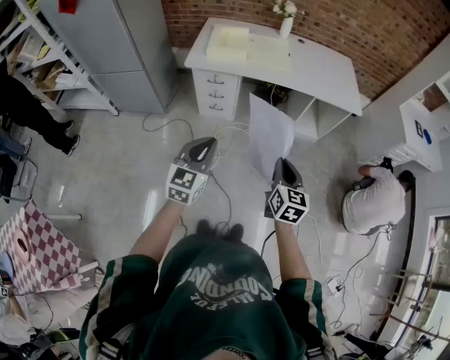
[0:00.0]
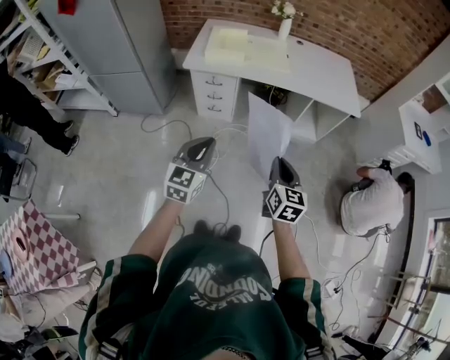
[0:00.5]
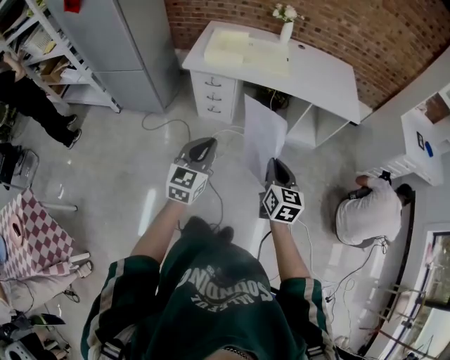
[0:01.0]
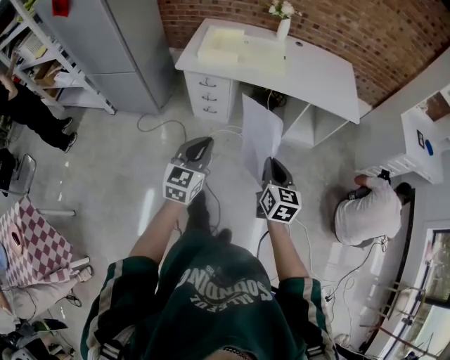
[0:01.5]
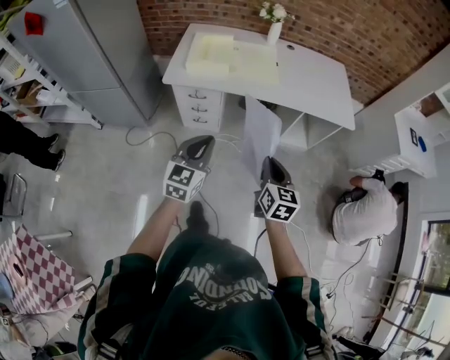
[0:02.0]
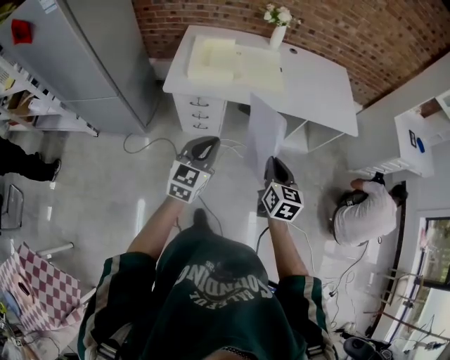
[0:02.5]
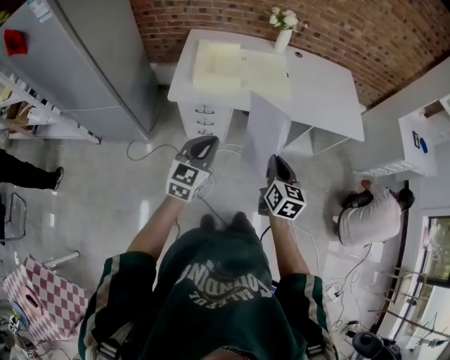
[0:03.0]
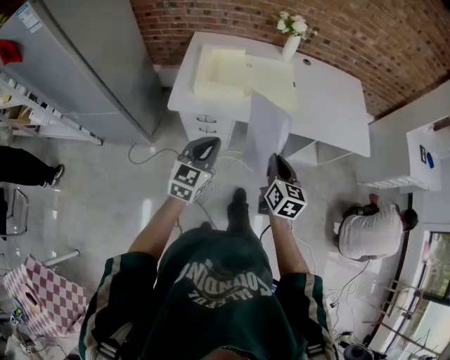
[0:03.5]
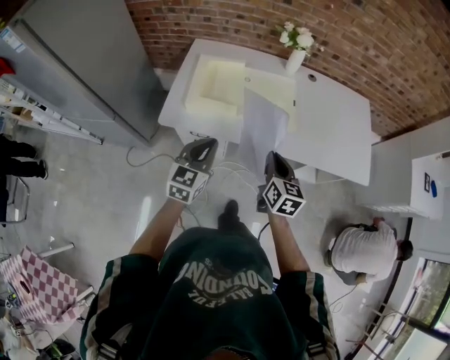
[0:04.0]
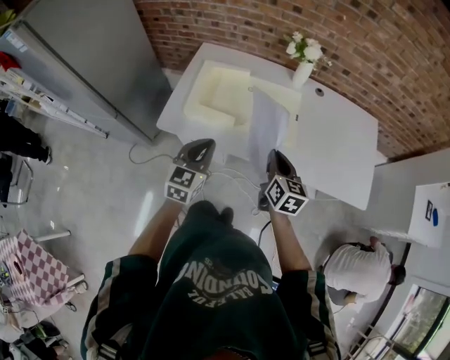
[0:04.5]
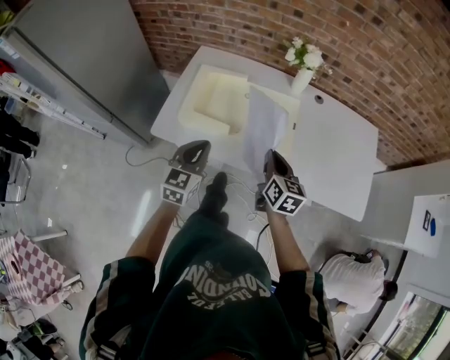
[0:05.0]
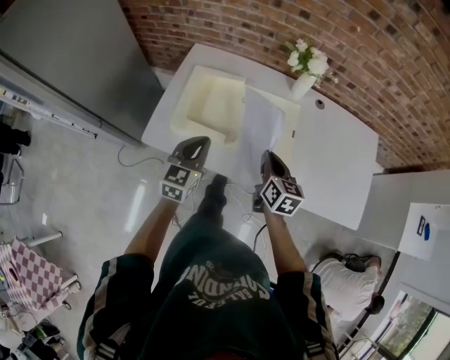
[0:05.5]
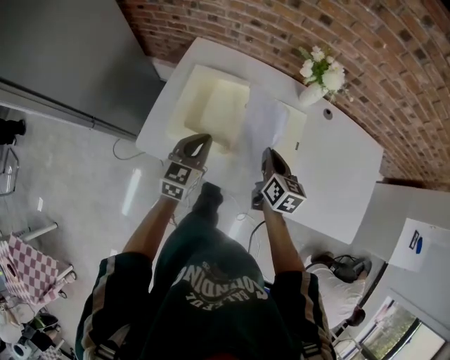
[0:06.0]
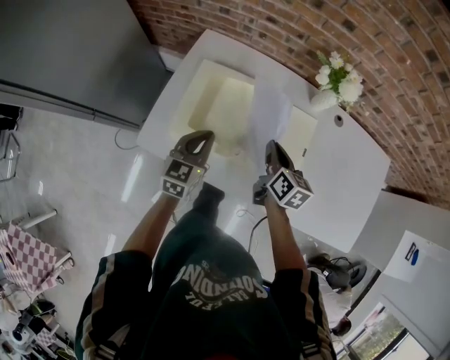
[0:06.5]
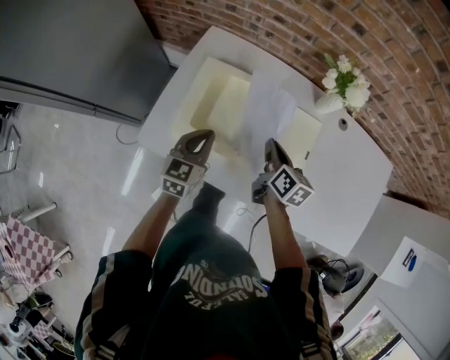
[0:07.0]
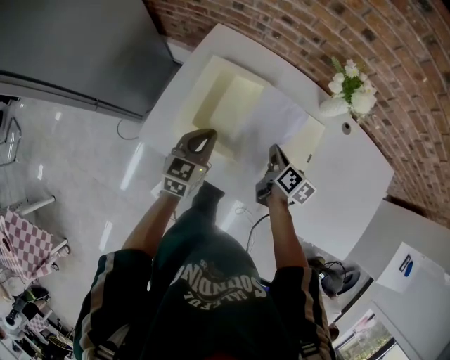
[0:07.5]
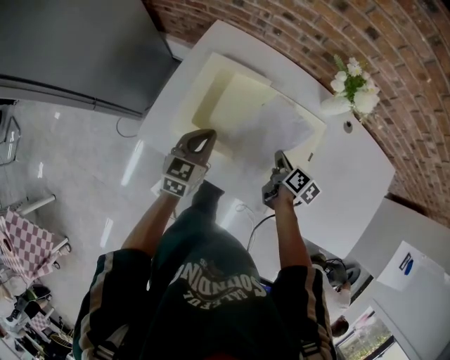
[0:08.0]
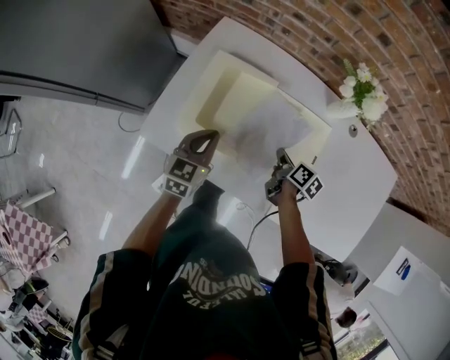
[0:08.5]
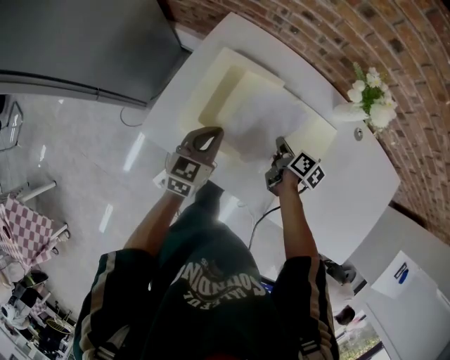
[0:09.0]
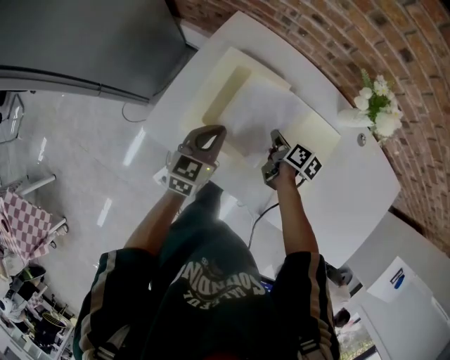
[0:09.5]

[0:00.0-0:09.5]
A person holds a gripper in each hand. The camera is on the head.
0:00.0 to 0:02.0: The grippers both shift forward by some 15 cm.
0:02.0 to 0:04.0: The grippers both shift forward by about 30 cm.
0:04.0 to 0:05.5: The two grippers go some 20 cm forward.
0:05.5 to 0:07.5: Both grippers travel together forward and downward, approximately 15 cm. The right gripper swivels some 30 degrees.
0:07.5 to 0:09.5: The right gripper shifts some 10 cm downward and forward.

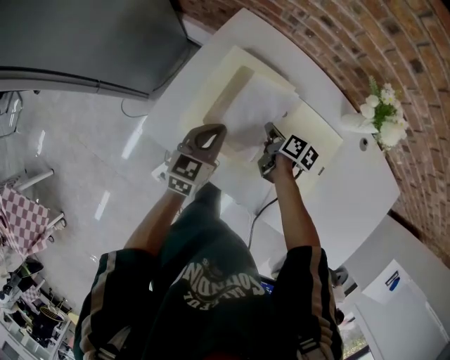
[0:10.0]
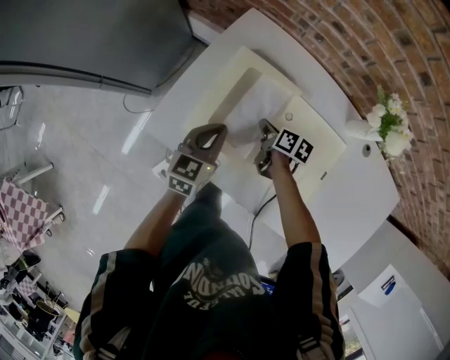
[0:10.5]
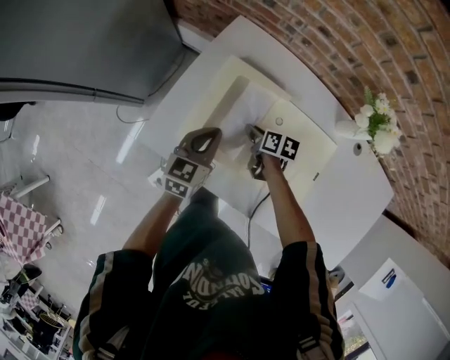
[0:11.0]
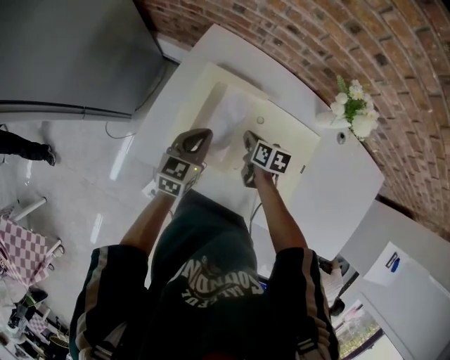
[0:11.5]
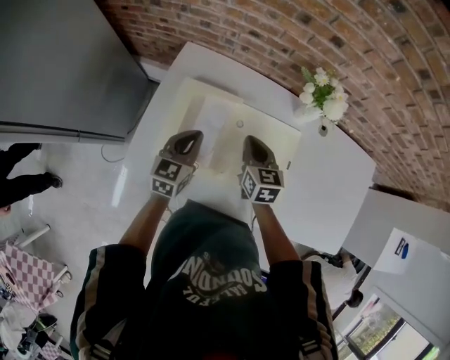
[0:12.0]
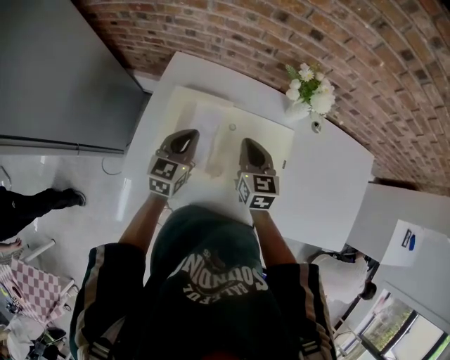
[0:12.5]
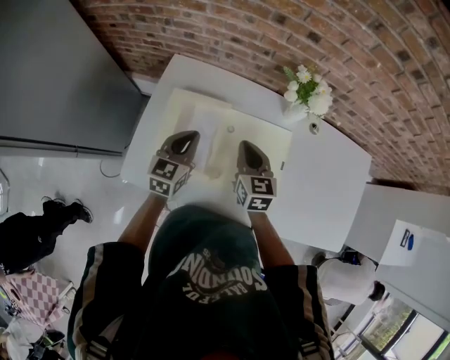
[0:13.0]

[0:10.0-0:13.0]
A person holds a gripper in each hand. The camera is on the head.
0:10.0 to 0:11.5: The right gripper opens, then closes again.
0:11.5 to 0:13.0: The left gripper goes some 5 cm upward; the right gripper goes roughly 15 cm upward, and rotates some 40 degrees.

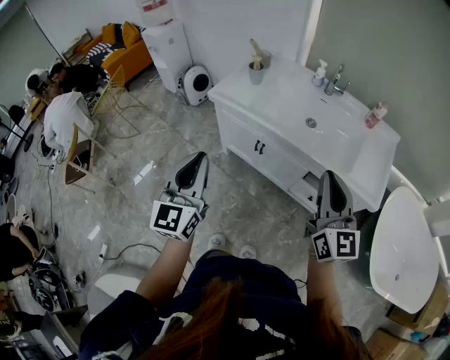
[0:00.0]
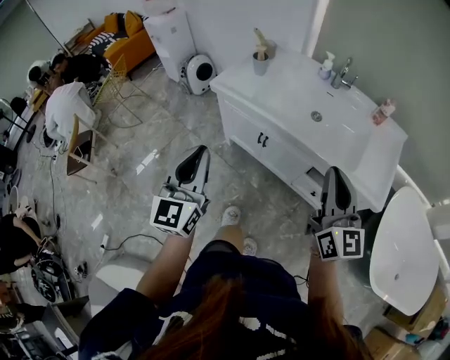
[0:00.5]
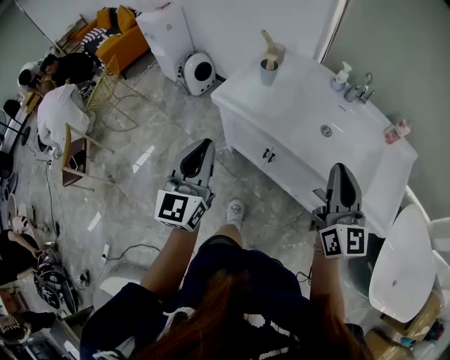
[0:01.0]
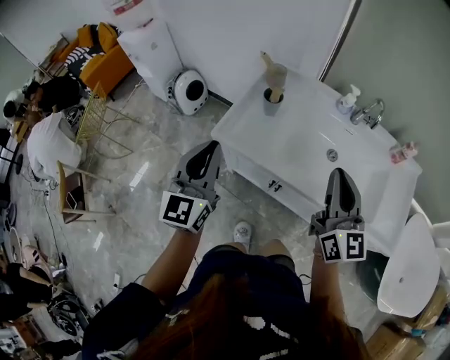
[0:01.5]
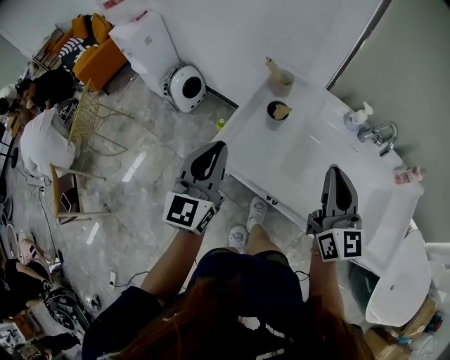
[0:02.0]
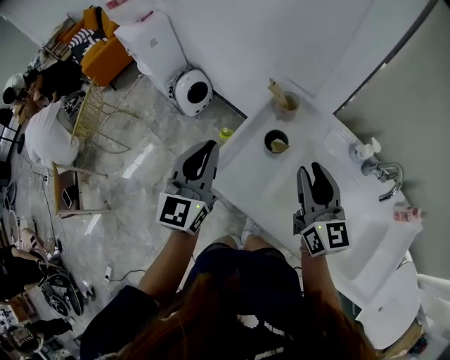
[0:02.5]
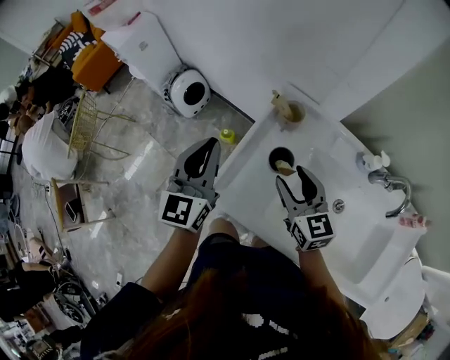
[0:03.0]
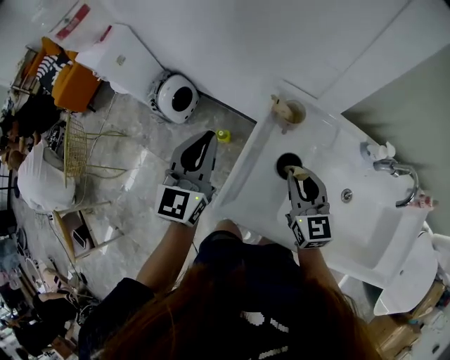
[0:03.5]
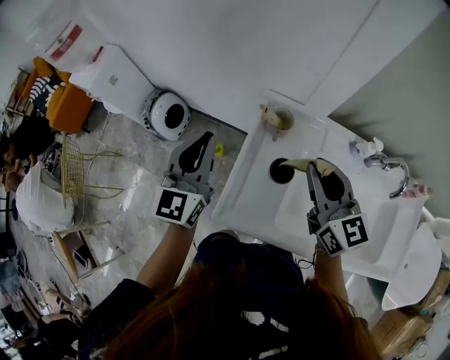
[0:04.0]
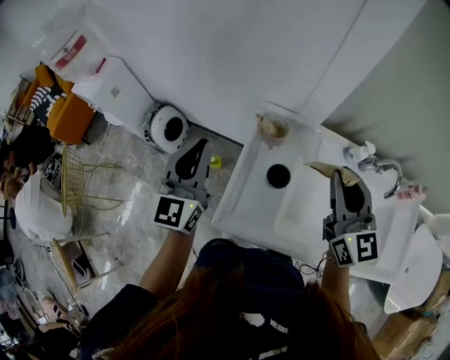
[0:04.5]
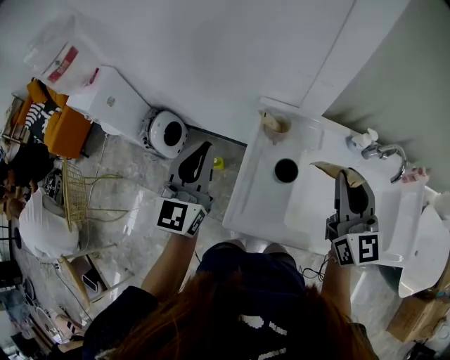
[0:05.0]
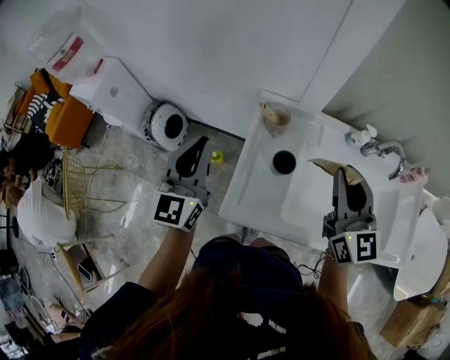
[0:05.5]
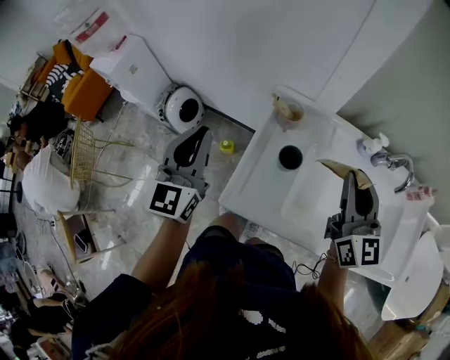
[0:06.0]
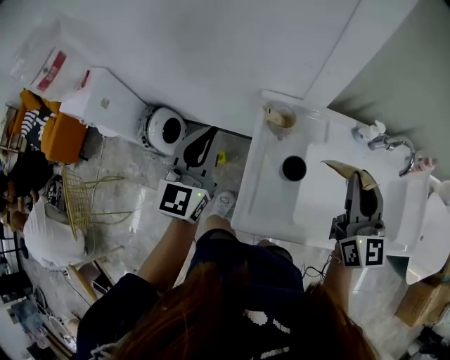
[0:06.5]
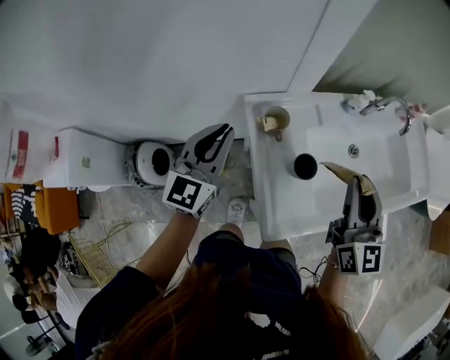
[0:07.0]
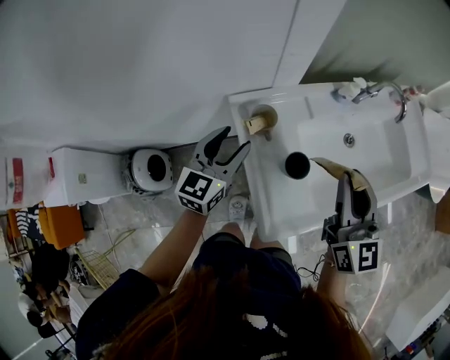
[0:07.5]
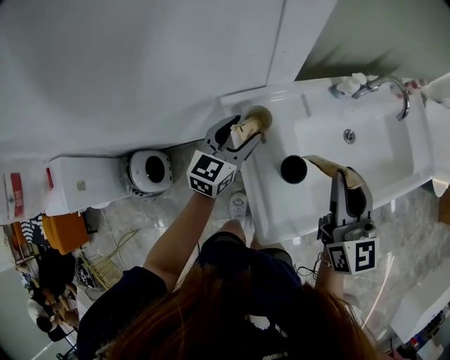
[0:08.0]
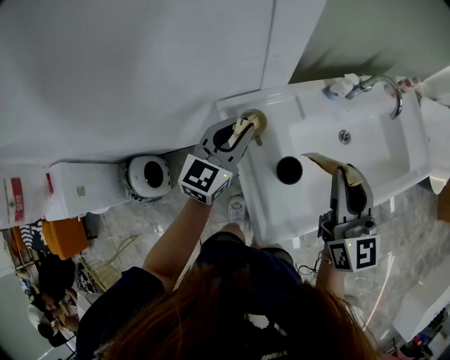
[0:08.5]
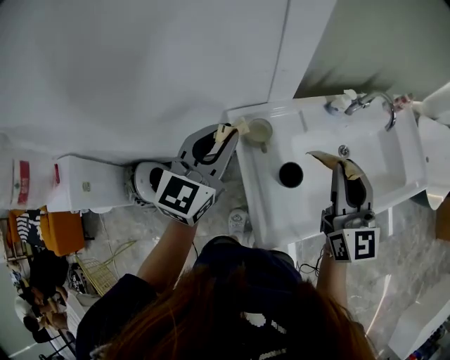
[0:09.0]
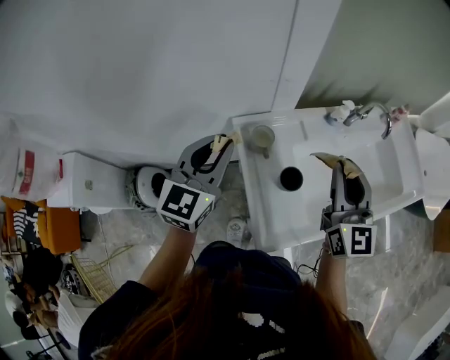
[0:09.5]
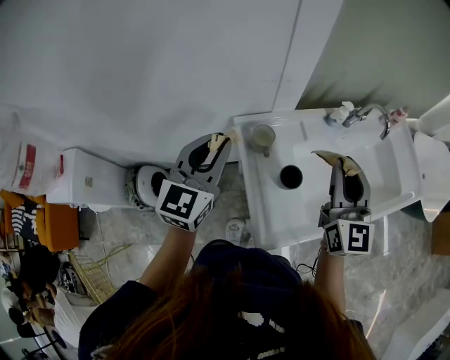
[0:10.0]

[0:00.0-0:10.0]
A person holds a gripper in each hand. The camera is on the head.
0:00.0 to 0:02.0: The two grippers travel together, forward, approximately 50 cm.
0:02.0 to 0:04.0: Both grippers travel together forward, some 30 cm. The right gripper opens, then closes again.
0:04.0 to 0:06.0: The left gripper moves backward, about 5 cm. The right gripper goes about 10 cm to the right and backward.
0:06.0 to 0:08.0: The left gripper changes place by roughly 30 cm, rotates roughly 60 degrees, and opens up. Meanwhile the right gripper changes place by roughly 10 cm, and turns by approximately 40 degrees.
0:08.0 to 0:10.0: The right gripper is displaced upward by approximately 5 cm; the left gripper heads upward and backward, covering about 20 cm, and closes.

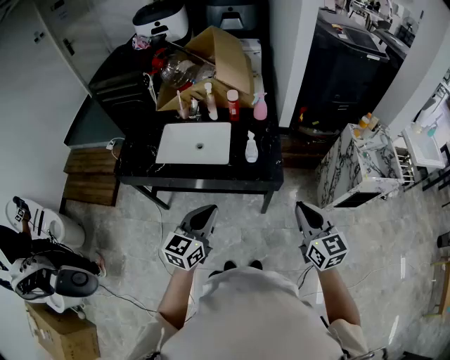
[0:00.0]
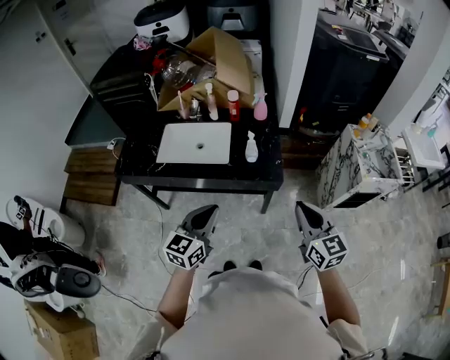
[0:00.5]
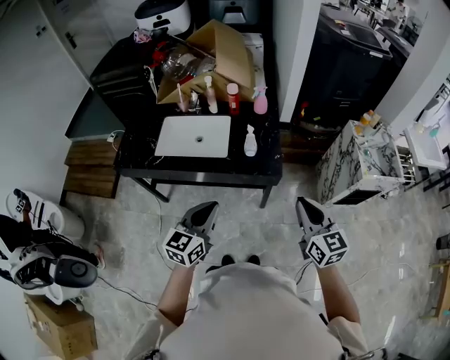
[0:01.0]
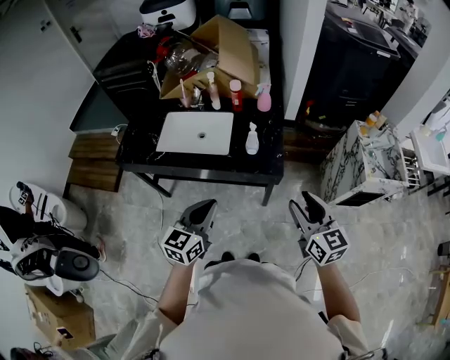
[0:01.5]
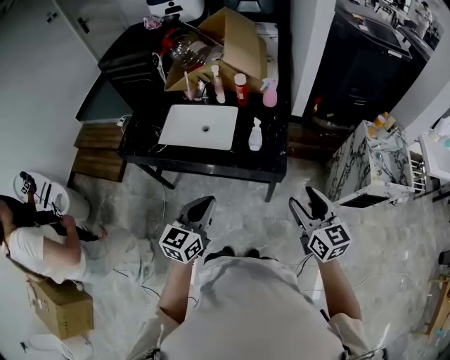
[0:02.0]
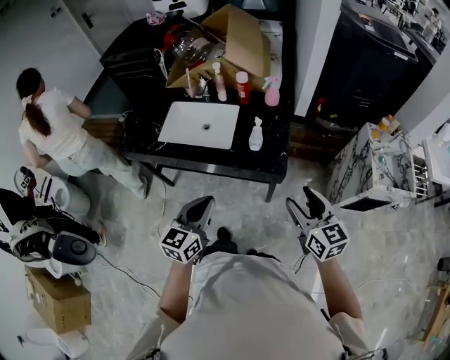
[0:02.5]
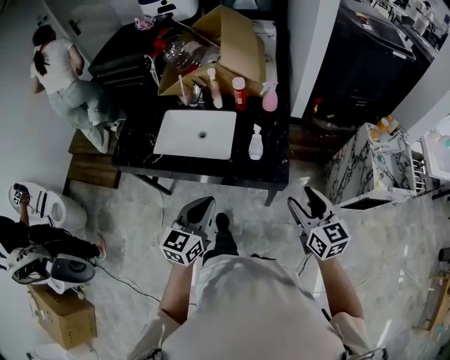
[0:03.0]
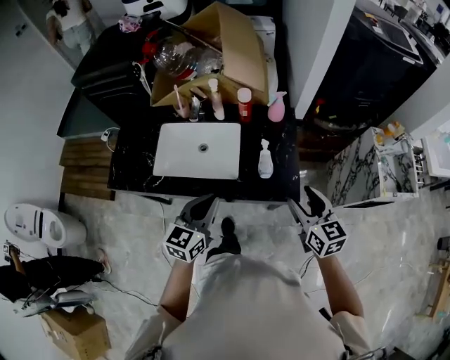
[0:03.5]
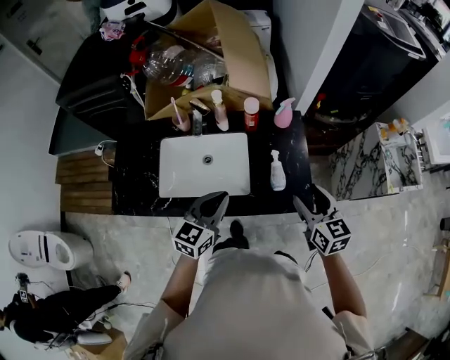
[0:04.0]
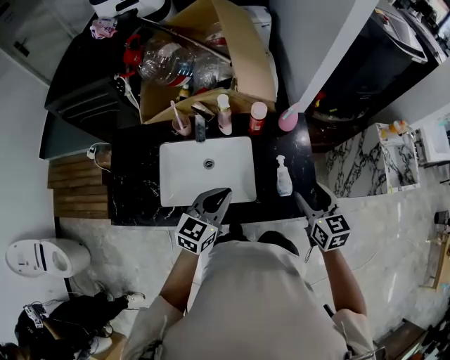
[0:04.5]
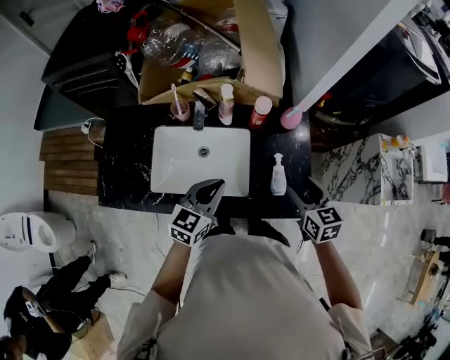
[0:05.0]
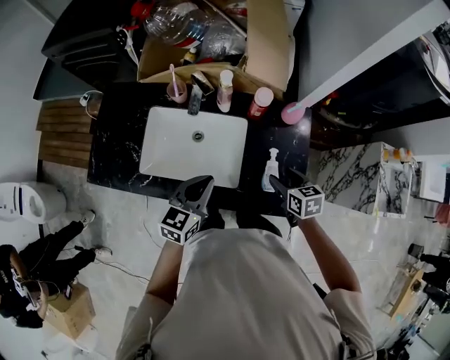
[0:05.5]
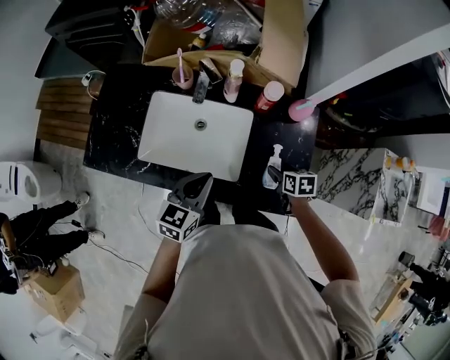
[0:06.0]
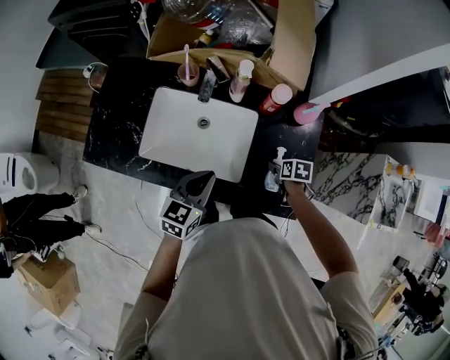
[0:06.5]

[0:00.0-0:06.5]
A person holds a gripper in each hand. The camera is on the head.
0:00.0 to 0:02.0: The right gripper moves about 5 cm, and opens up.
0:02.0 to 0:04.5: The right gripper goes approximately 35 cm forward and to the left, and rotates roughly 20 degrees. The left gripper shifts some 35 cm forward, and changes its angle by about 20 degrees.
0:04.5 to 0:06.5: The left gripper moves downward, some 10 cm, and swivels some 20 degrees. The right gripper moves downward, approximately 30 cm, and tilts its fingers some 40 degrees downward.
